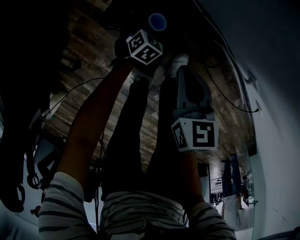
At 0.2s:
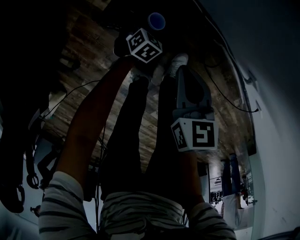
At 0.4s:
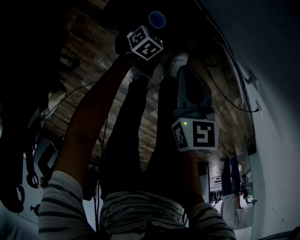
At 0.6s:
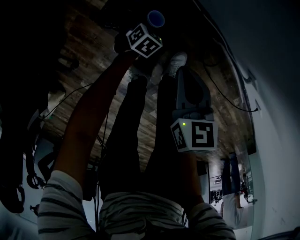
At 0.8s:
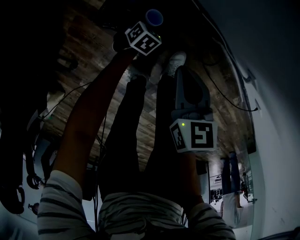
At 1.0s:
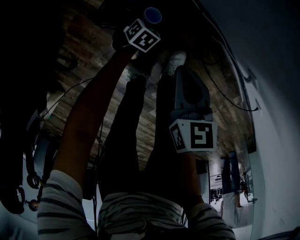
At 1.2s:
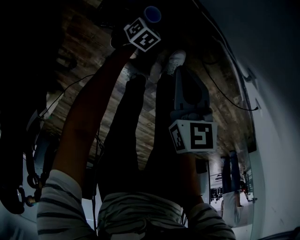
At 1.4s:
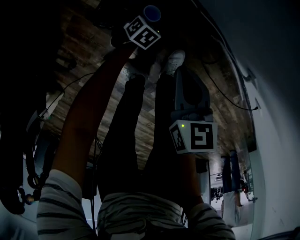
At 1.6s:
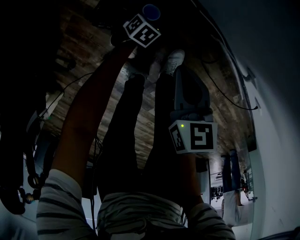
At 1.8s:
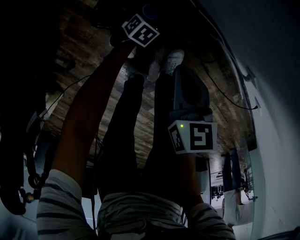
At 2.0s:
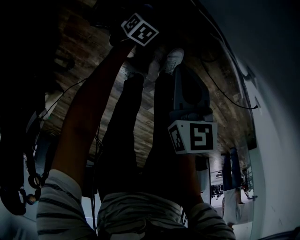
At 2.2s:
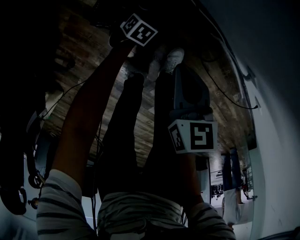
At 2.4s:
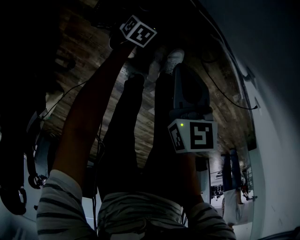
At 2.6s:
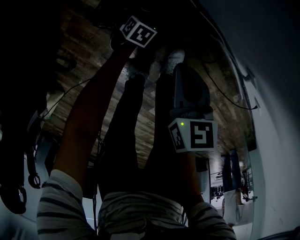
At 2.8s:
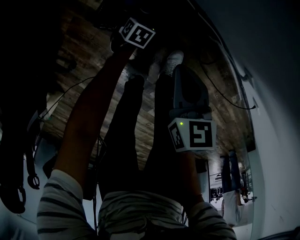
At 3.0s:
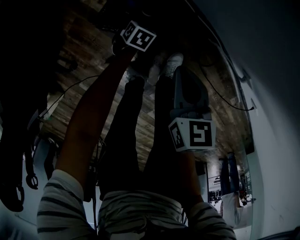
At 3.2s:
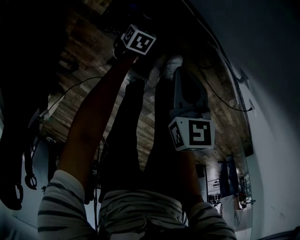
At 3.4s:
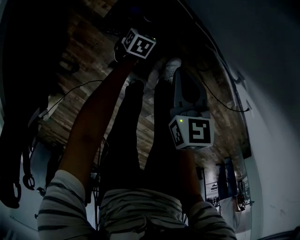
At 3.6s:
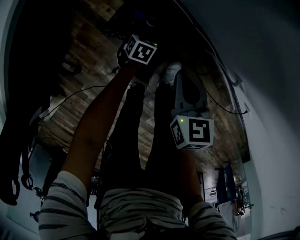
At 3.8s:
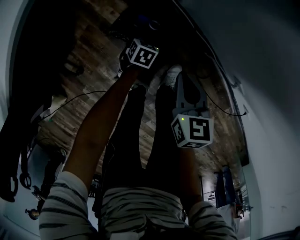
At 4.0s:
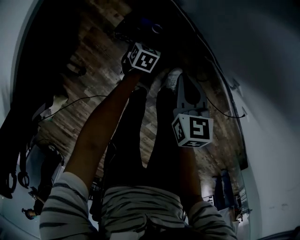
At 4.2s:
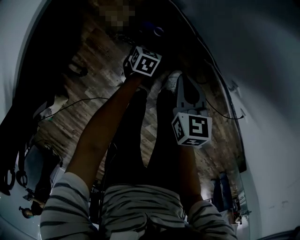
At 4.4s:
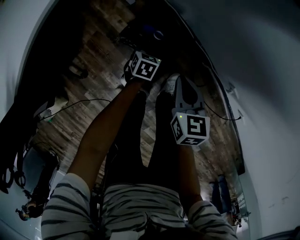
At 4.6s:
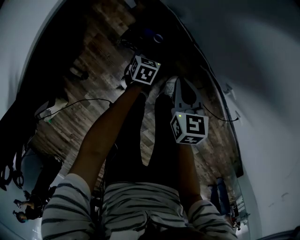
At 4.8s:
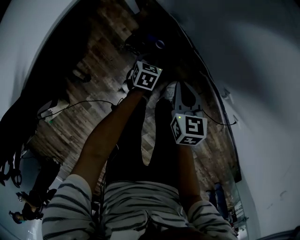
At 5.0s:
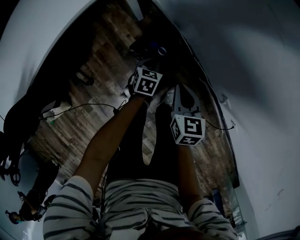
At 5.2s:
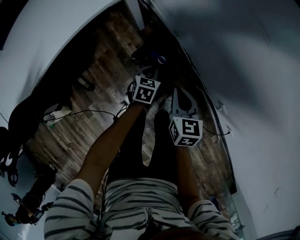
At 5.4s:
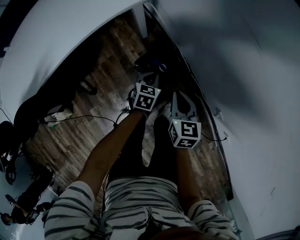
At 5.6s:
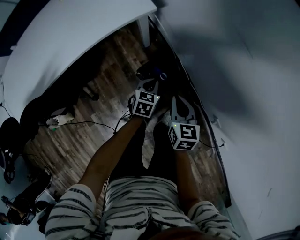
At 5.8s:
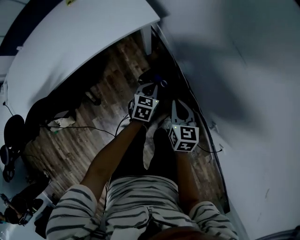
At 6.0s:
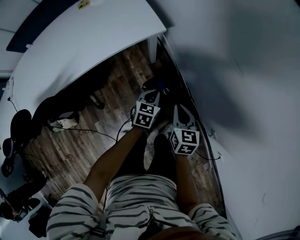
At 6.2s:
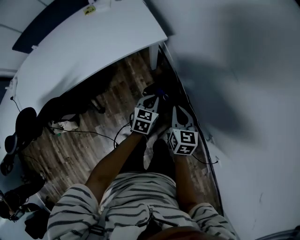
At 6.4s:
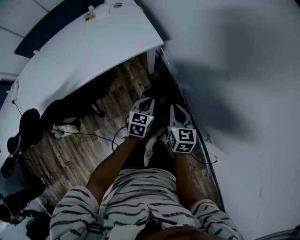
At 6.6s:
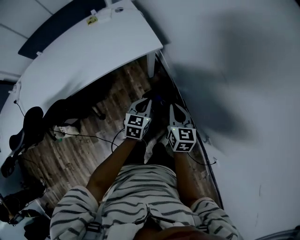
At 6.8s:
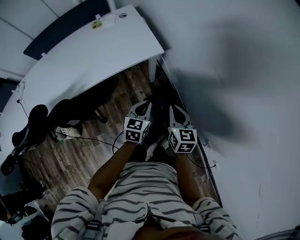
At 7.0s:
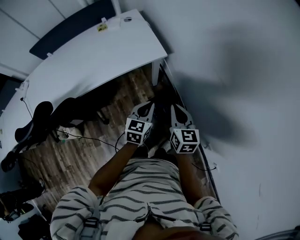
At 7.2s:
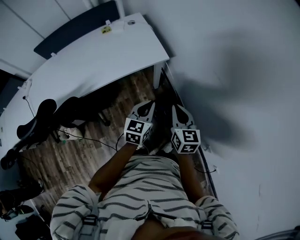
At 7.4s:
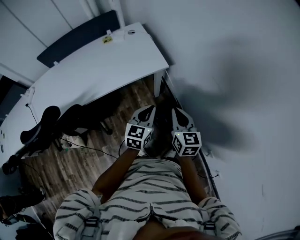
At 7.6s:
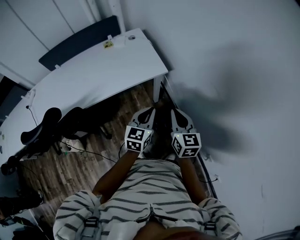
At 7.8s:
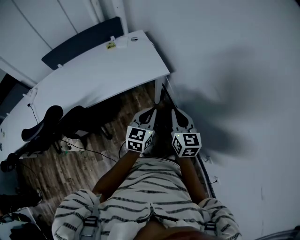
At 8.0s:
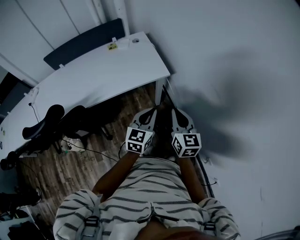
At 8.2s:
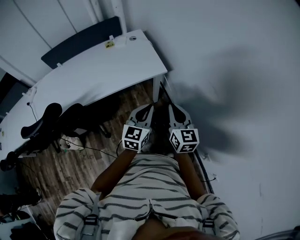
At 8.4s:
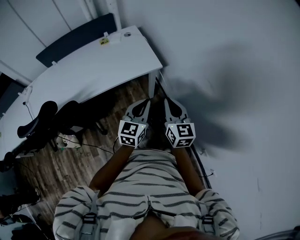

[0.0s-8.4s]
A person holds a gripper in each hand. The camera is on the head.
0.0s to 1.4s: The left gripper travels downward by approximately 5 cm.
1.4s to 2.8s: The grippers move only a little.
2.8s to 4.2s: The left gripper is displaced upward by approximately 15 cm, and closes up; the right gripper shifts approximately 10 cm upward.
4.2s to 5.6s: The right gripper goes about 15 cm upward and to the left, while the left gripper goes roughly 25 cm upward, rotates approximately 20 degrees, and closes up.
5.6s to 7.0s: Both grippers travel together upward, about 25 cm. The left gripper changes its angle by approximately 20 degrees.
7.0s to 8.4s: Both grippers move upward, about 10 cm.

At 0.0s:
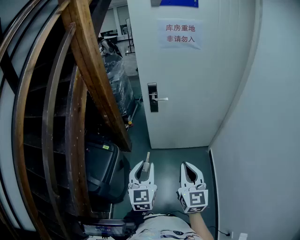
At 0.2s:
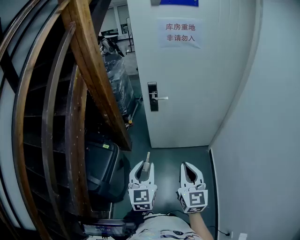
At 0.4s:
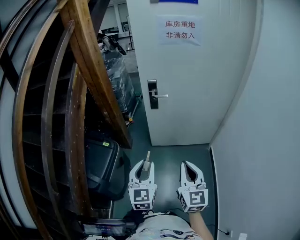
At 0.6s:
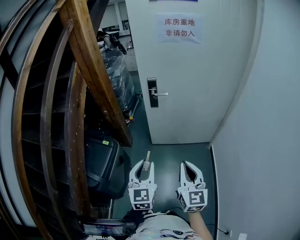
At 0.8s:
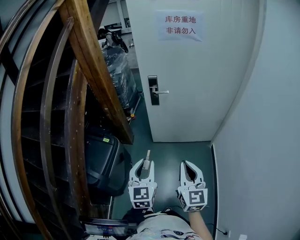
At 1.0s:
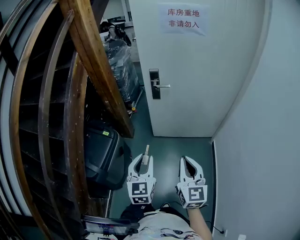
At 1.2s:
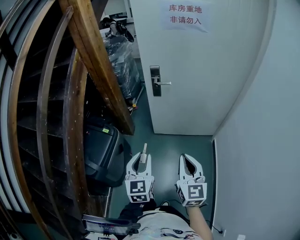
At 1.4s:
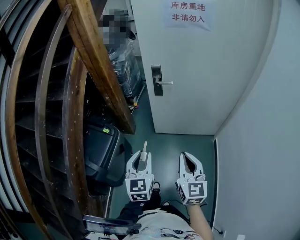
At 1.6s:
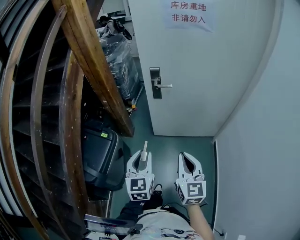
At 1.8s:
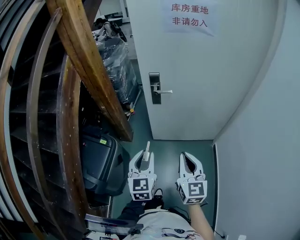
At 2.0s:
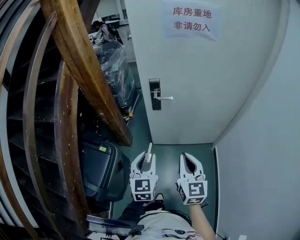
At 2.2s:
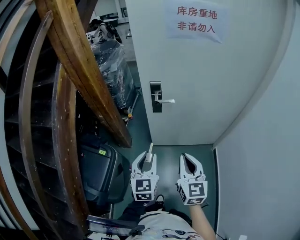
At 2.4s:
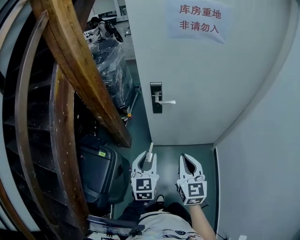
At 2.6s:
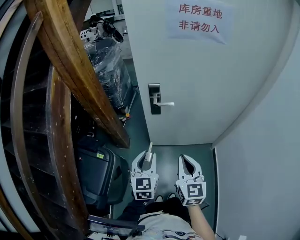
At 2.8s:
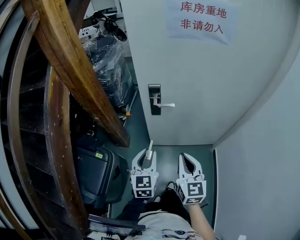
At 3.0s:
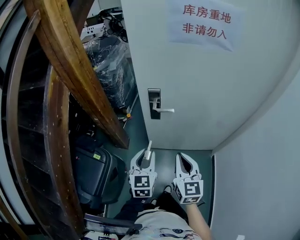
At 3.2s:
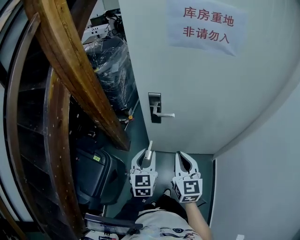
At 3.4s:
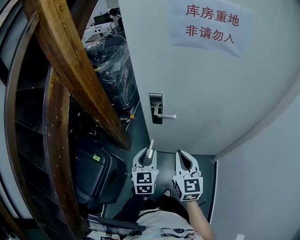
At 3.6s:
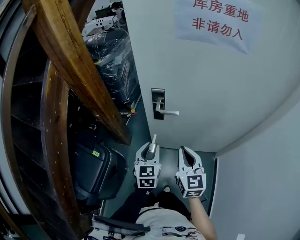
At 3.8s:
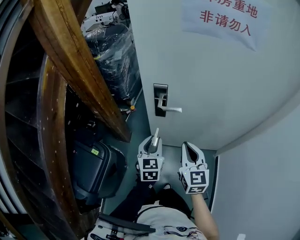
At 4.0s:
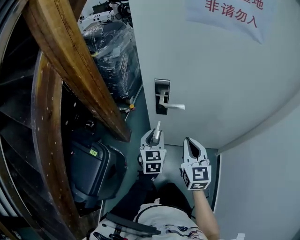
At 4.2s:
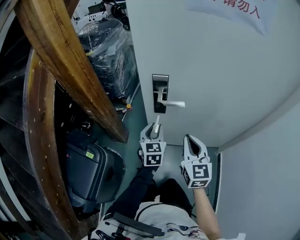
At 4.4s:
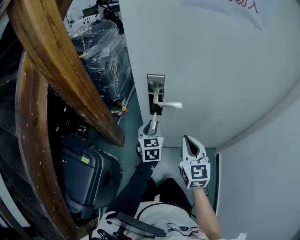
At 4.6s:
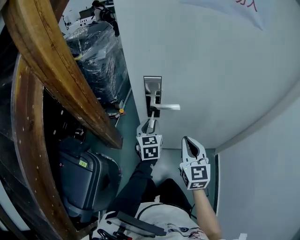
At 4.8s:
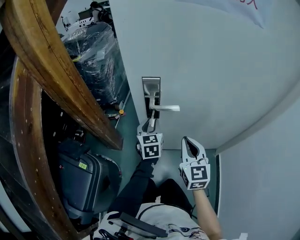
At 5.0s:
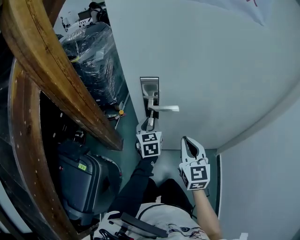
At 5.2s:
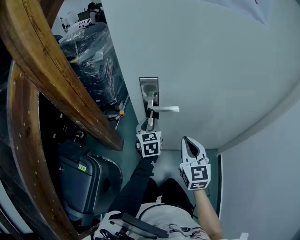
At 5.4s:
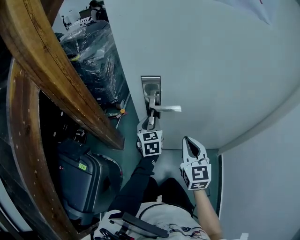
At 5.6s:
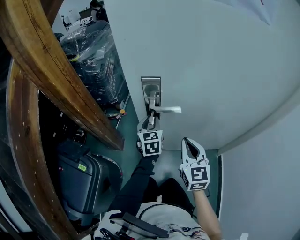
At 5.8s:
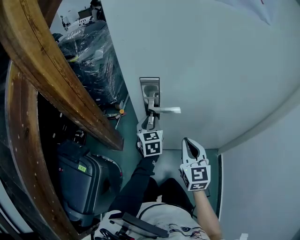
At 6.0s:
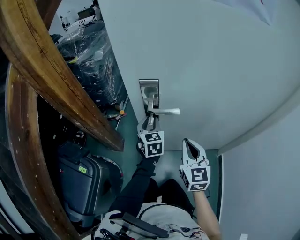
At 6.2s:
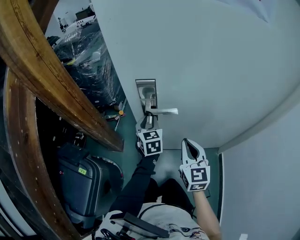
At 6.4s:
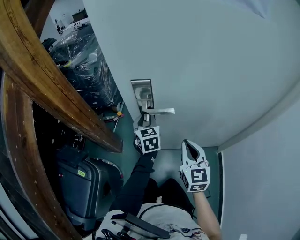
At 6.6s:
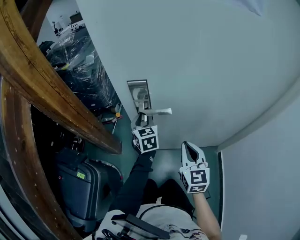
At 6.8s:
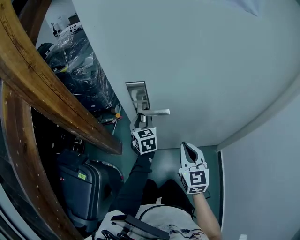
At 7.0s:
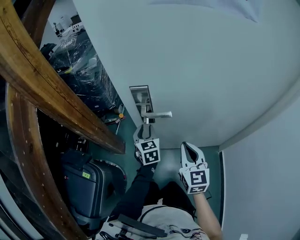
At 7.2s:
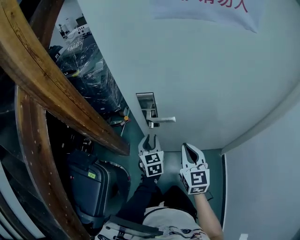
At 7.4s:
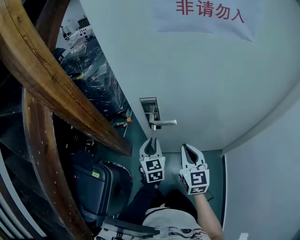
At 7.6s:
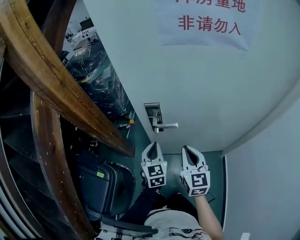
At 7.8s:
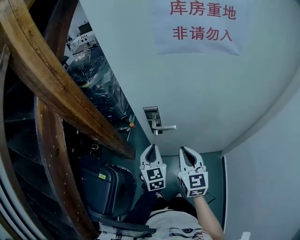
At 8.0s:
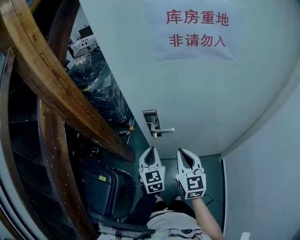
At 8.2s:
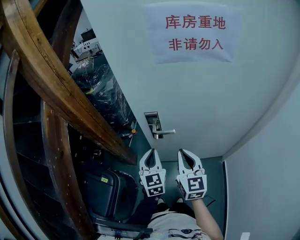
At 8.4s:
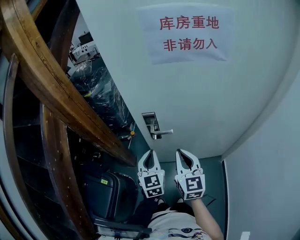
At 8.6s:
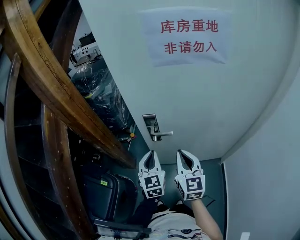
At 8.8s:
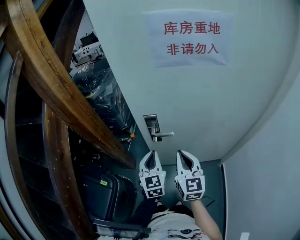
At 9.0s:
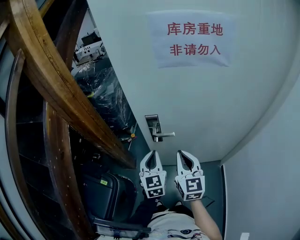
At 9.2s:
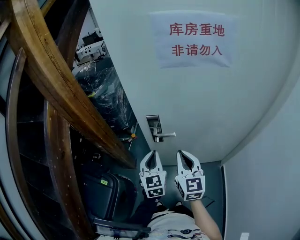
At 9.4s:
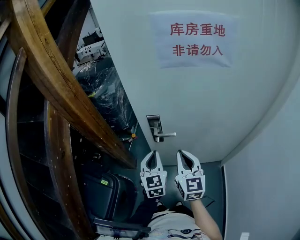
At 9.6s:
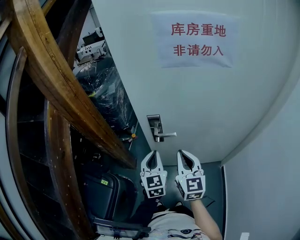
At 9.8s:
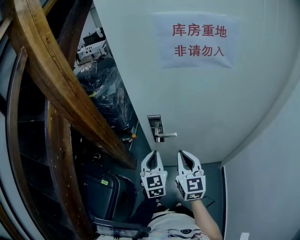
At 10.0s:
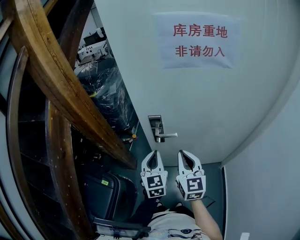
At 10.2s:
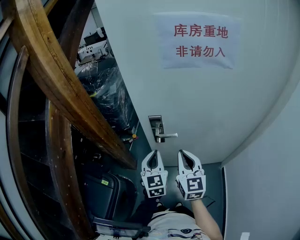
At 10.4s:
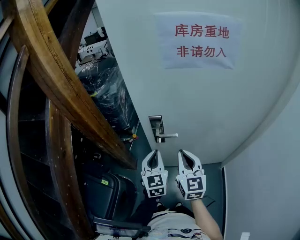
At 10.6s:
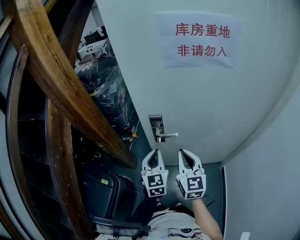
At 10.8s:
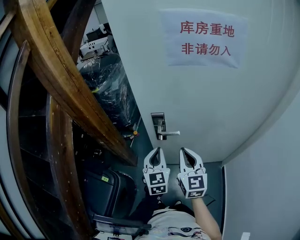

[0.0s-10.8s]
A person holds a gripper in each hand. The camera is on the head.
0.0s to 1.6s: The grippers both shift forward by roughly 10 cm.
1.6s to 3.0s: Both grippers travel together forward, roughly 20 cm.
3.0s to 4.6s: The grippers both shift forward and downward by about 25 cm.
4.6s to 6.2s: The right gripper shifts by about 5 cm; the left gripper goes approximately 5 cm forward.
6.2s to 7.8s: The right gripper is displaced upward by about 15 cm. The left gripper travels upward and backward by approximately 20 cm, and closes up.
7.8s to 9.2s: Both grippers travel together upward, roughly 5 cm.
9.2s to 10.8s: Neither gripper changes place.

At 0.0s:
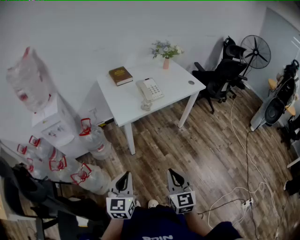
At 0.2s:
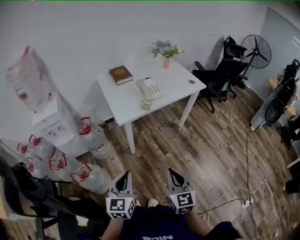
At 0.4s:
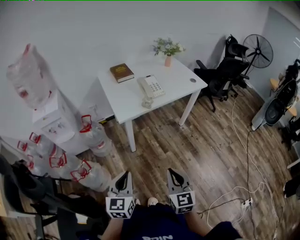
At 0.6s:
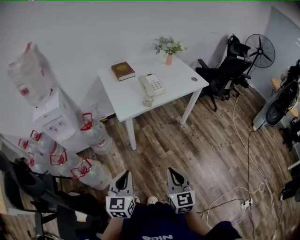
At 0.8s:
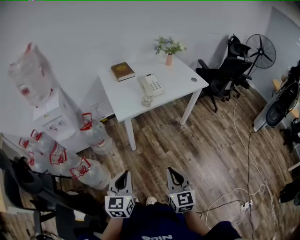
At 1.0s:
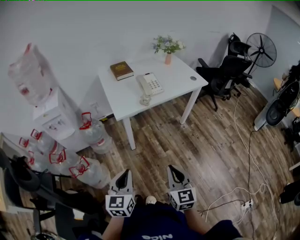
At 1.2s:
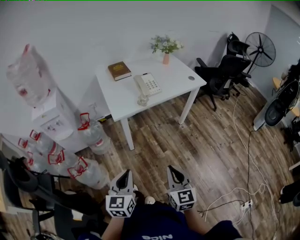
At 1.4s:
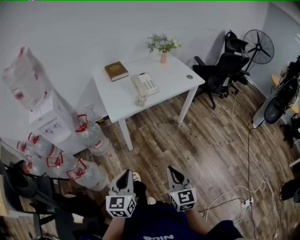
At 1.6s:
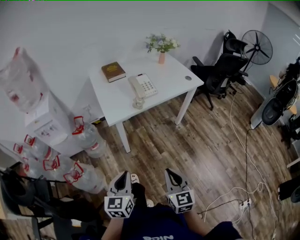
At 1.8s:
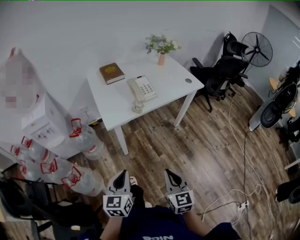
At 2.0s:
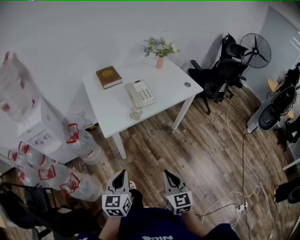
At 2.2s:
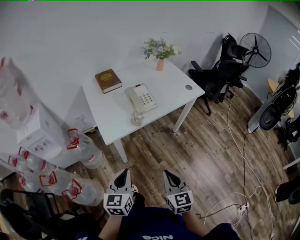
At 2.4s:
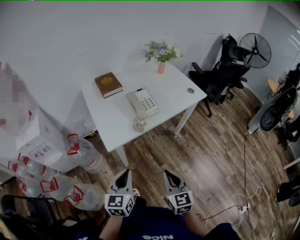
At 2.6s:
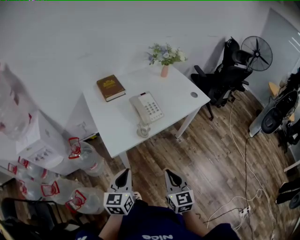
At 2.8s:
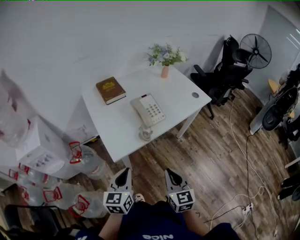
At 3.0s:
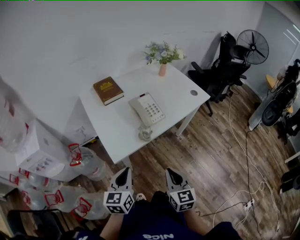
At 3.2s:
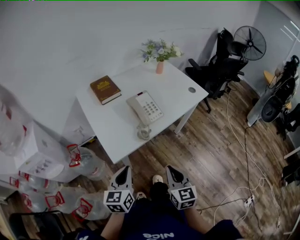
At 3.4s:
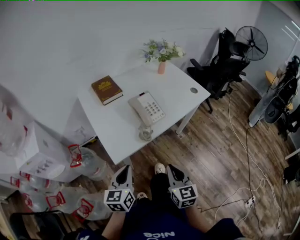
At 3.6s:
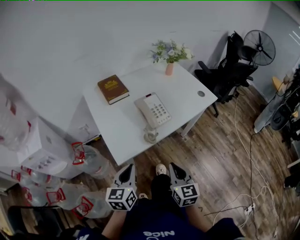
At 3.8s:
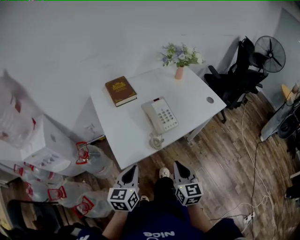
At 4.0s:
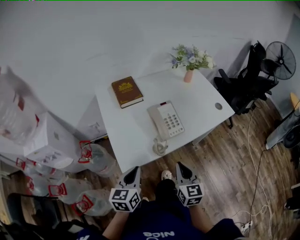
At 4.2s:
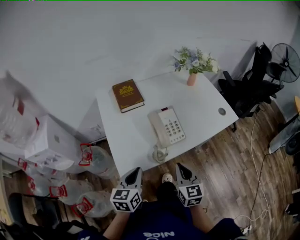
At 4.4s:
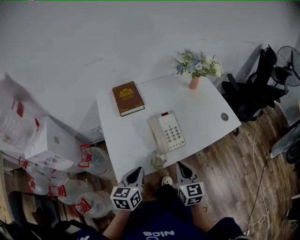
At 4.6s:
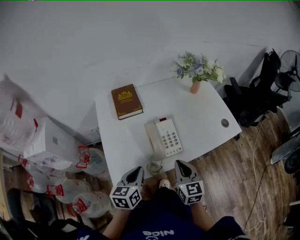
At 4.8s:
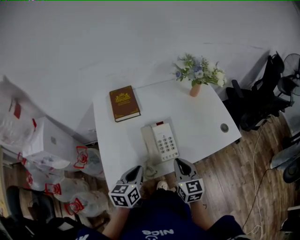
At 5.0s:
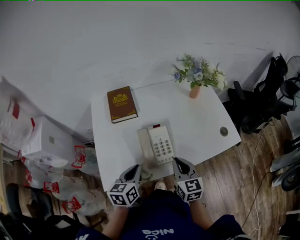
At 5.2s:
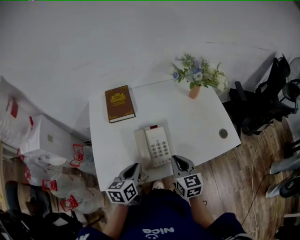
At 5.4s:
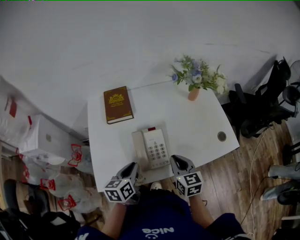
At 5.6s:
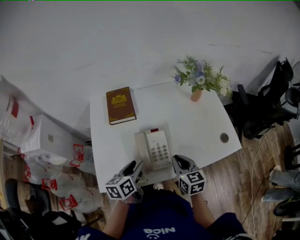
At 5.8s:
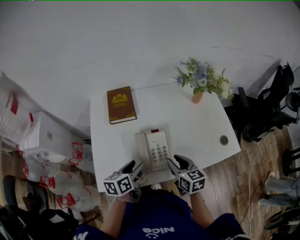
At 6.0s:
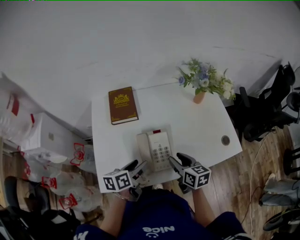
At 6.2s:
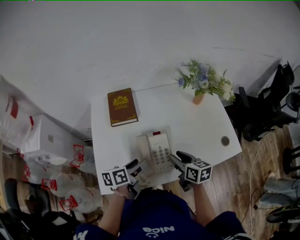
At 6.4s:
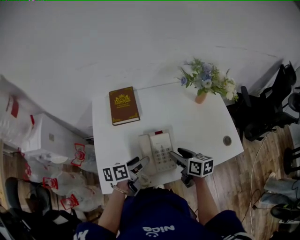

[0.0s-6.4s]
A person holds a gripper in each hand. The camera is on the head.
0.0s to 1.6s: The left gripper changes place by some 5 cm, while the right gripper shifts by roughly 5 cm.
1.6s to 3.2s: The two grippers go approximately 25 cm forward.
3.2s to 4.8s: The two grippers go approximately 25 cm forward.
4.8s to 6.4s: Both grippers travel together forward, approximately 10 cm. The right gripper swivels about 40 degrees, and opens up. The left gripper rotates about 30 degrees, and opens its fingers.
